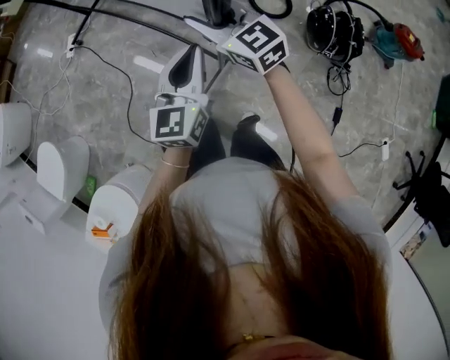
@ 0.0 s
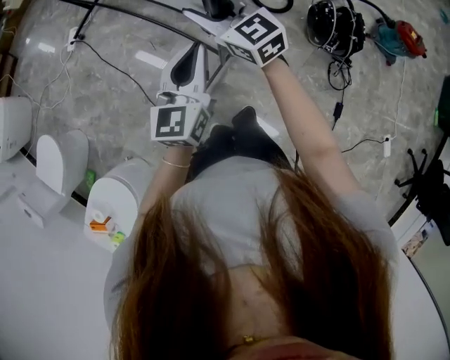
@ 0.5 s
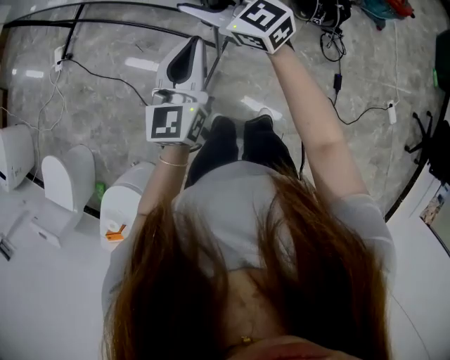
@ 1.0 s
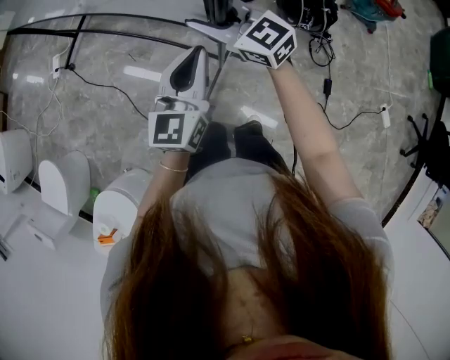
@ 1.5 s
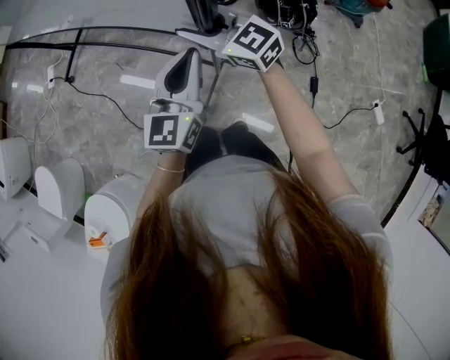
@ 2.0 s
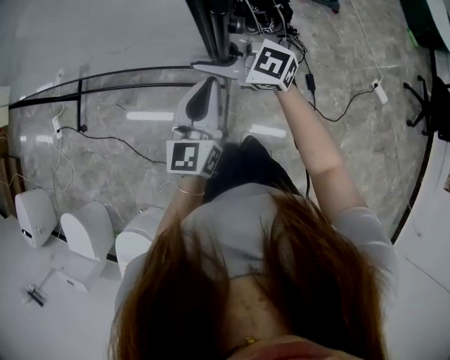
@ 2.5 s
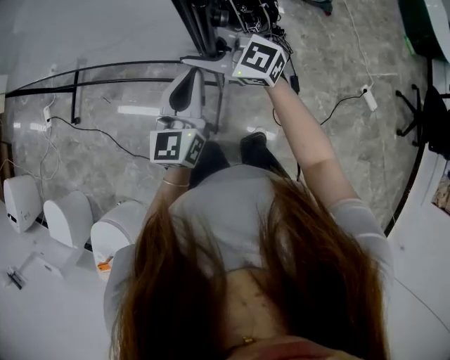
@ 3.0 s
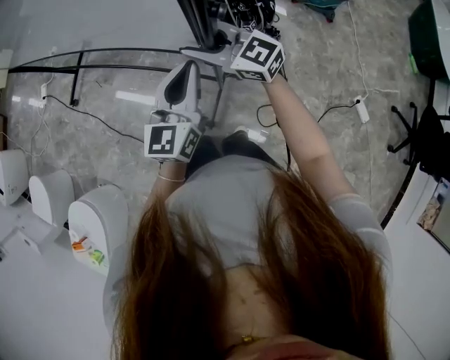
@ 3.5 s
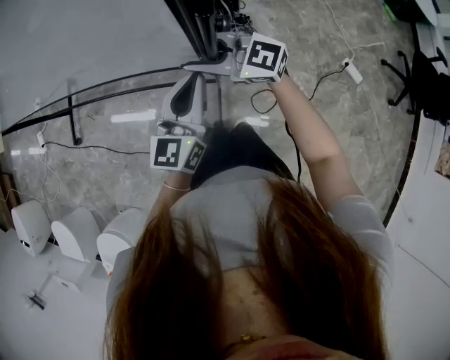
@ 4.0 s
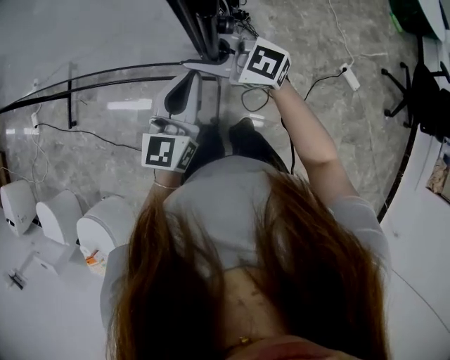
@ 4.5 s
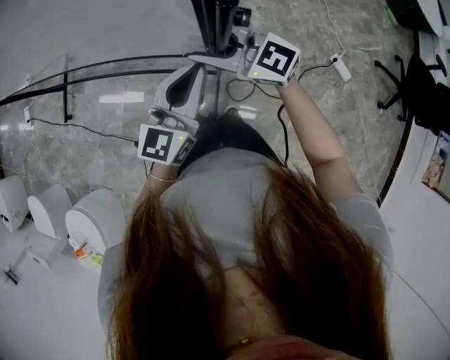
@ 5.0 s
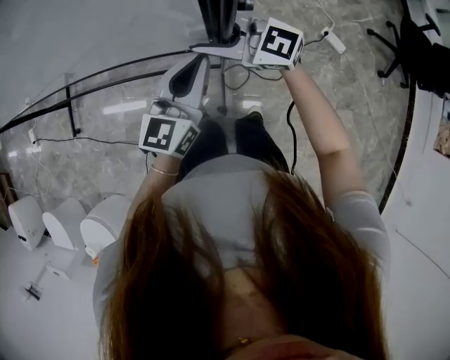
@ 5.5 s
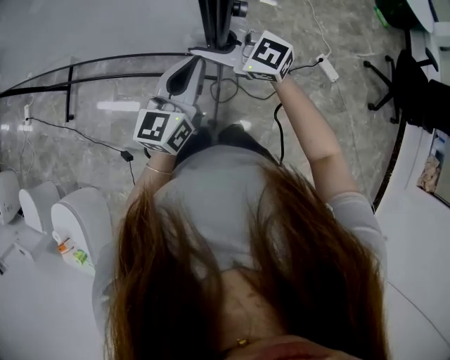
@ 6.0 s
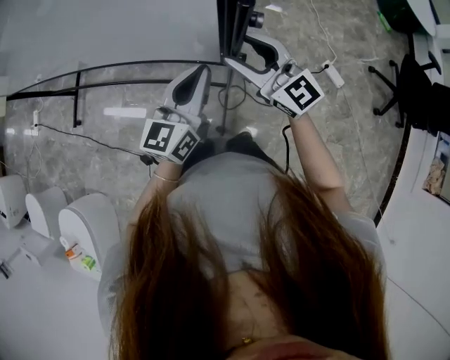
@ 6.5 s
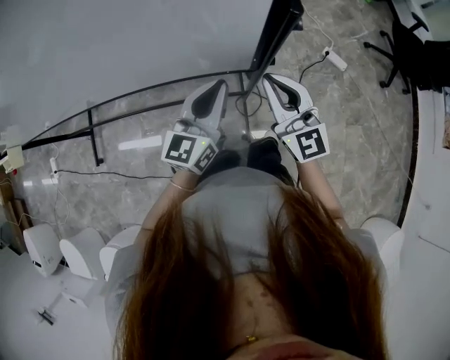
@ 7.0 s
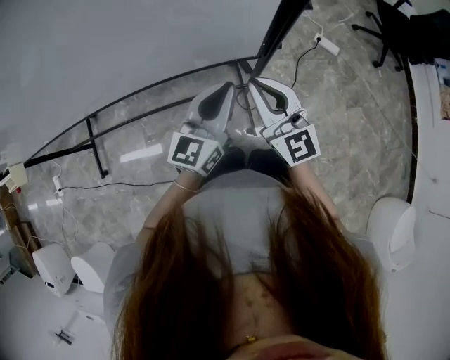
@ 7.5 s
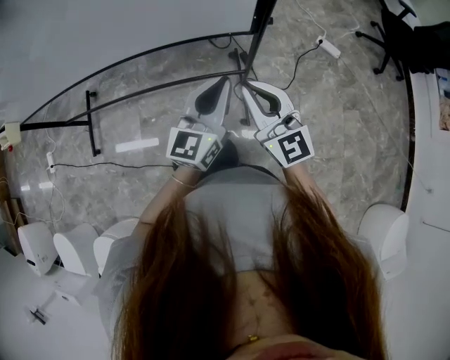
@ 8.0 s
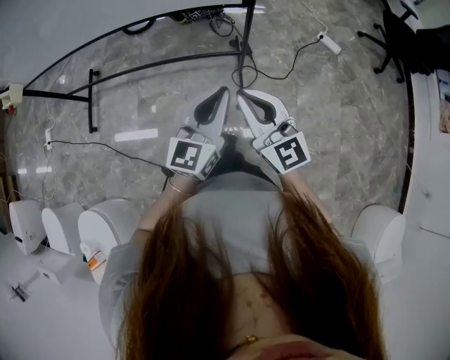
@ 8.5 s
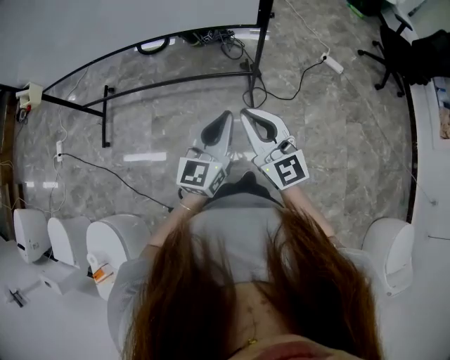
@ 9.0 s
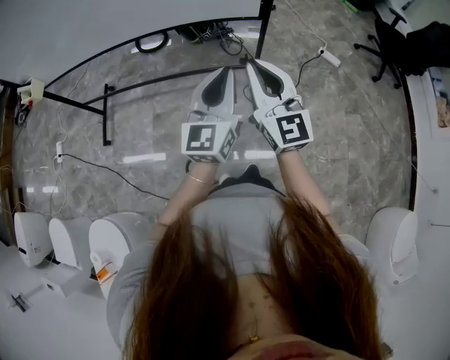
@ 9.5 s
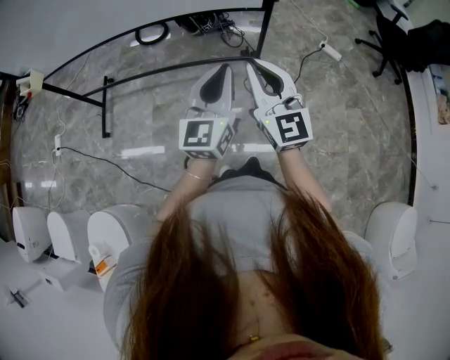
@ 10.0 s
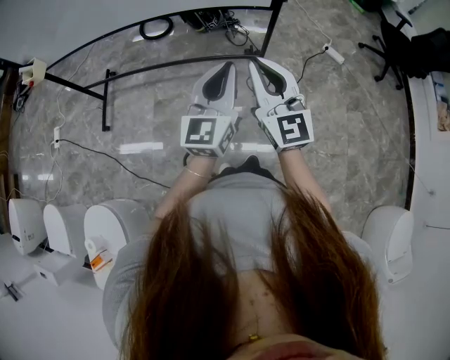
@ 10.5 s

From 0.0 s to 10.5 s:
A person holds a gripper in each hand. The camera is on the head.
From 0.0 s to 2.0 s: The right gripper moves backward and to the right, about 20 cm. Meanwhile the left gripper moves to the right and backward, some 20 cm.
From 2.0 s to 4.0 s: Both grippers move to the right and backward, about 30 cm.
From 4.0 s to 6.5 s: The left gripper moves backward and to the right, approximately 25 cm, while the right gripper moves to the right and backward, approximately 30 cm, and turns by some 30 degrees.
From 6.5 s to 8.5 s: The left gripper moves about 25 cm, while the right gripper shifts by some 35 cm, rotates some 30 degrees, and closes its fingers.
From 8.5 s to 10.5 s: The left gripper moves to the left and upward, roughly 10 cm. The right gripper shifts roughly 10 cm upward and to the left.

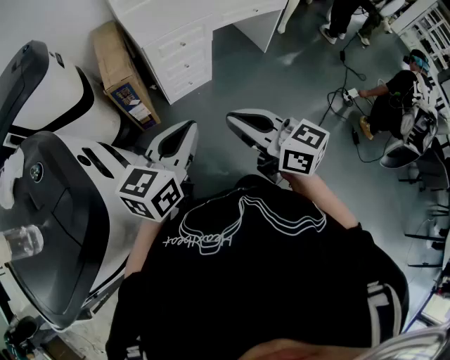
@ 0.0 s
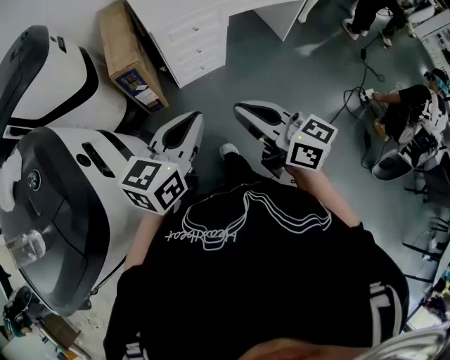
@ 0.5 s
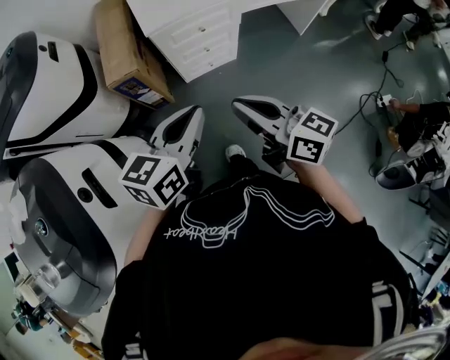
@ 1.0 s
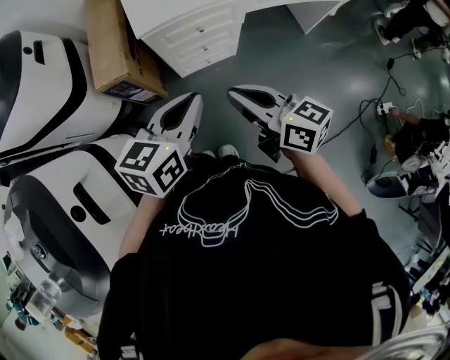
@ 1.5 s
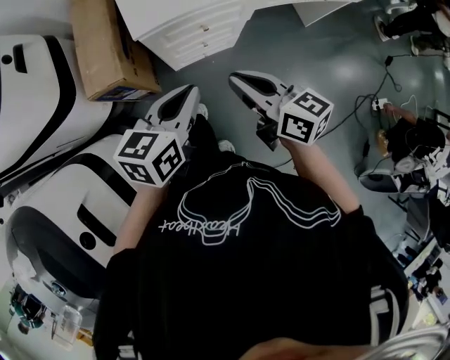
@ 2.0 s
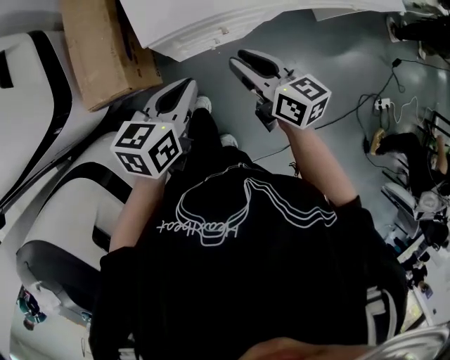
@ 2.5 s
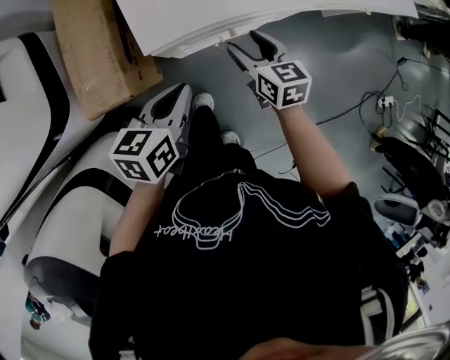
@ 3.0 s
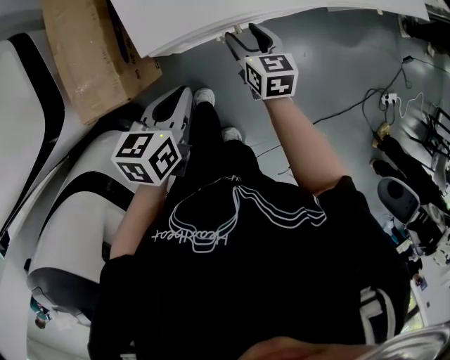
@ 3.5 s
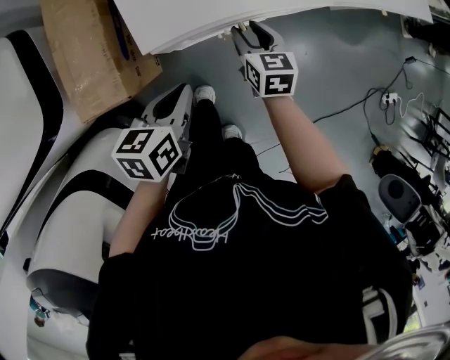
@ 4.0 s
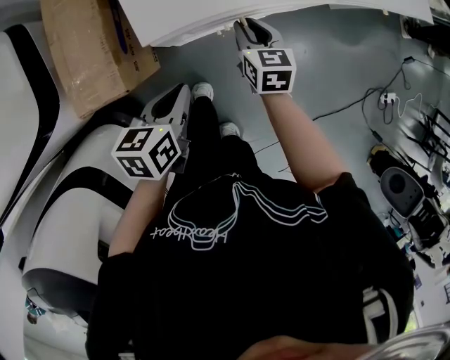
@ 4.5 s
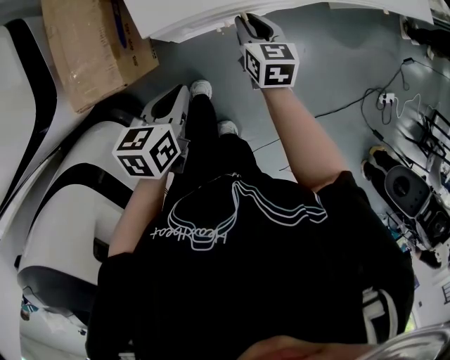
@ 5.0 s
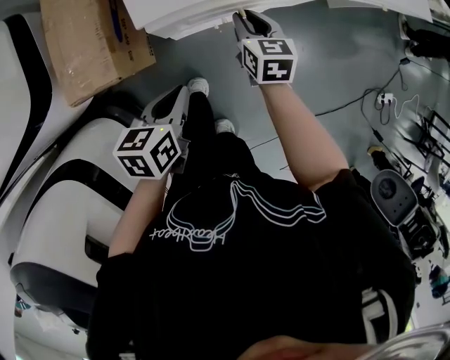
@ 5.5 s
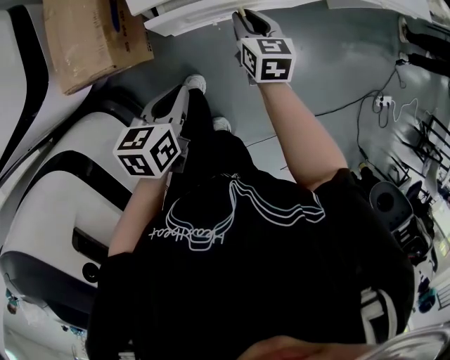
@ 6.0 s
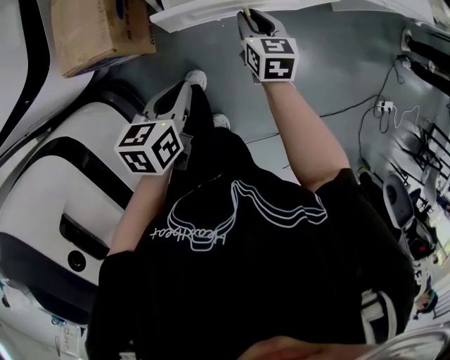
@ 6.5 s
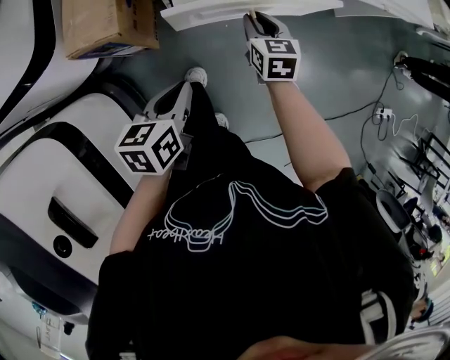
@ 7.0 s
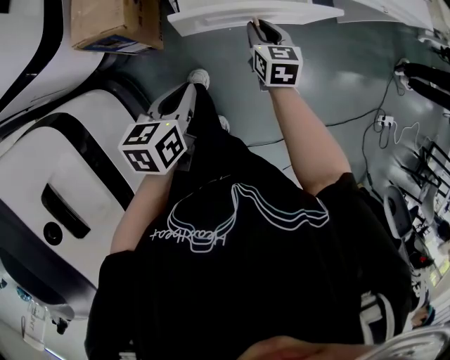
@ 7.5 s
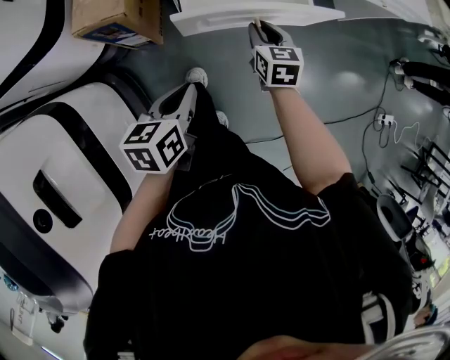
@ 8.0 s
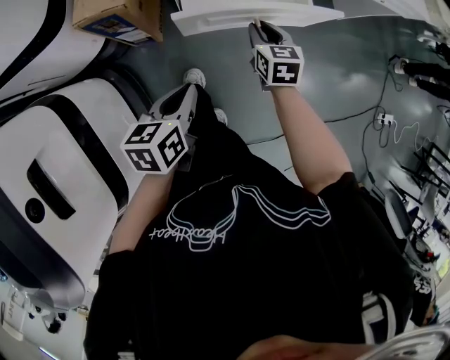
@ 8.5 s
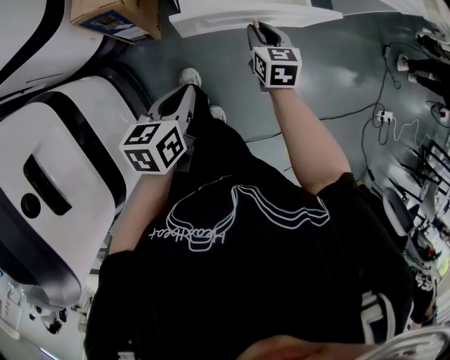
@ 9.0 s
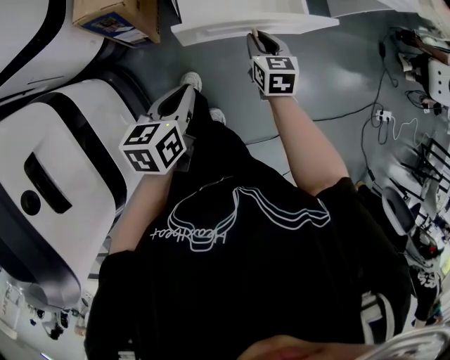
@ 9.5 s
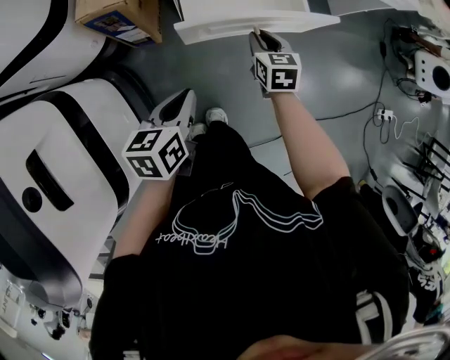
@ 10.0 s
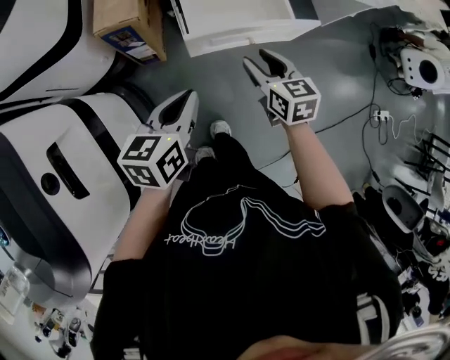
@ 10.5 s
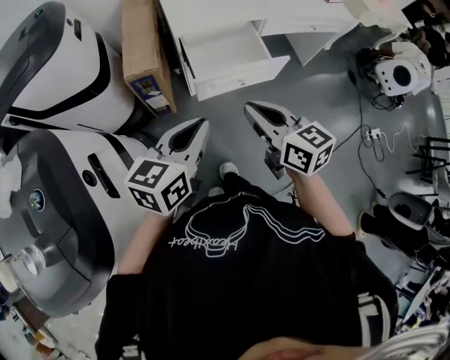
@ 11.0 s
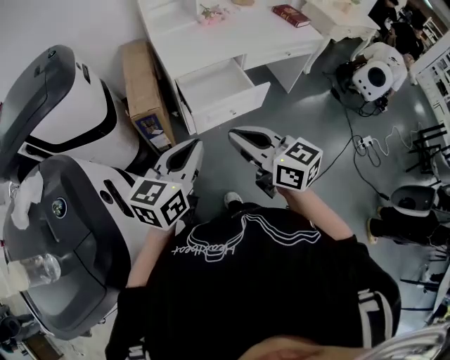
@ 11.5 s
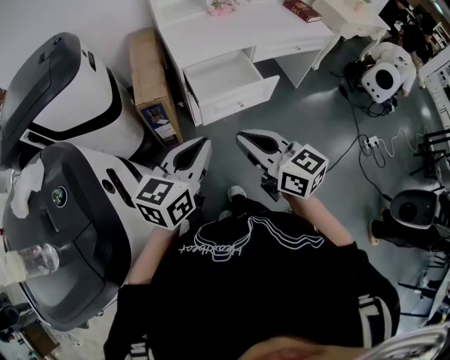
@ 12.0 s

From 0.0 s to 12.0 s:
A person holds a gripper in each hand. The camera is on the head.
From 0.0 s to 2.0 s: The right gripper shifts about 40 cm forward; the left gripper heads forward and downward, covering approximately 40 cm, and turns by about 20 degrees.
From 2.0 s to 4.0 s: The right gripper is displaced downward and forward by about 30 cm, swivels some 40 degrees, and opens, while the left gripper travels downward, to the left and forward by approximately 20 cm.
From 4.0 s to 6.0 s: The left gripper is displaced backward by approximately 5 cm.
From 6.0 s to 8.0 s: The two grippers go about 10 cm backward.
From 8.0 s to 10.0 s: Both grippers move backward, approximately 5 cm.
From 10.0 s to 12.0 s: The left gripper travels upward by some 35 cm, and turns by approximately 40 degrees. Meanwhile the right gripper goes about 50 cm upward and backward, angles its fingers upward, by about 30 degrees, and opens, then closes once more.

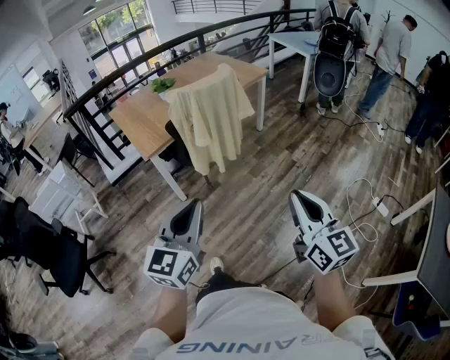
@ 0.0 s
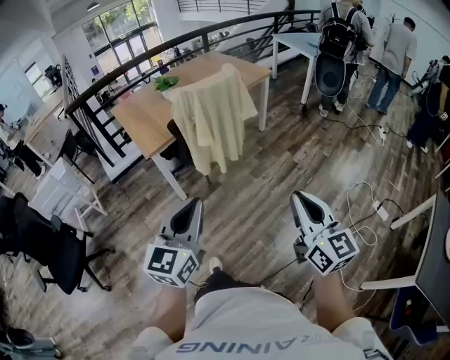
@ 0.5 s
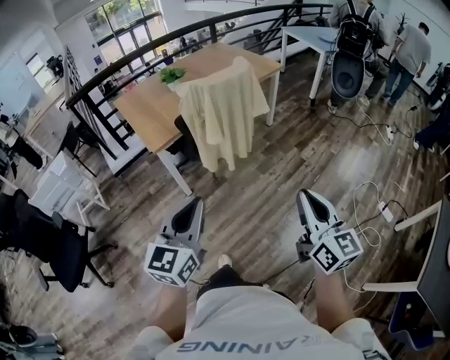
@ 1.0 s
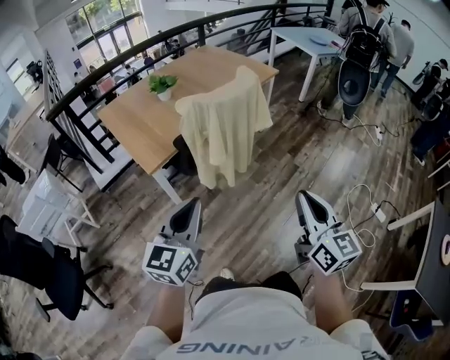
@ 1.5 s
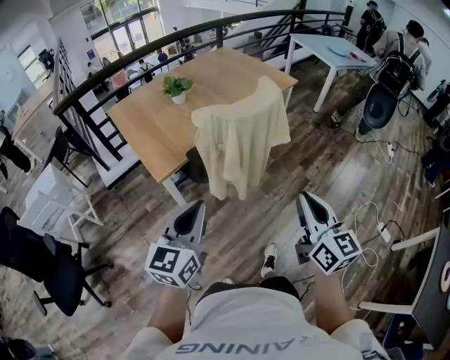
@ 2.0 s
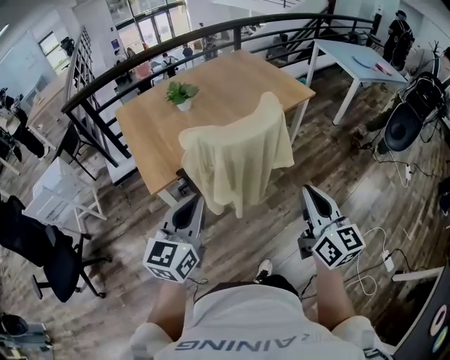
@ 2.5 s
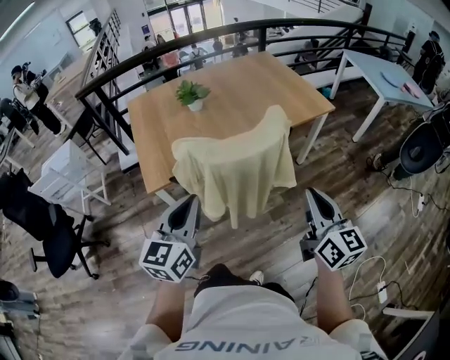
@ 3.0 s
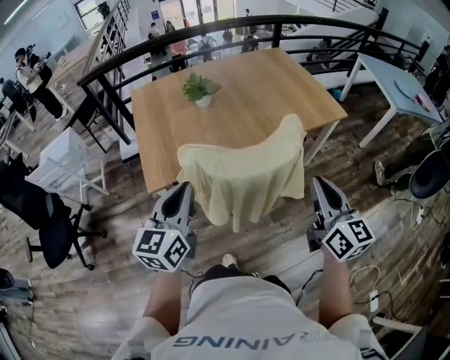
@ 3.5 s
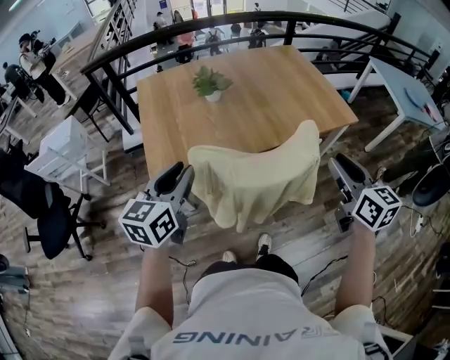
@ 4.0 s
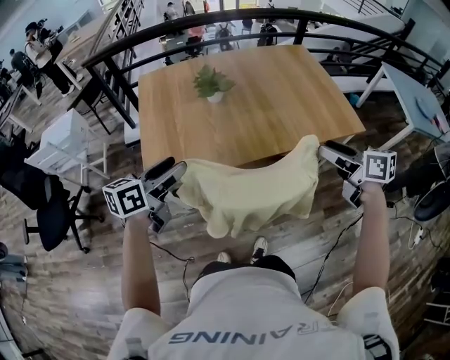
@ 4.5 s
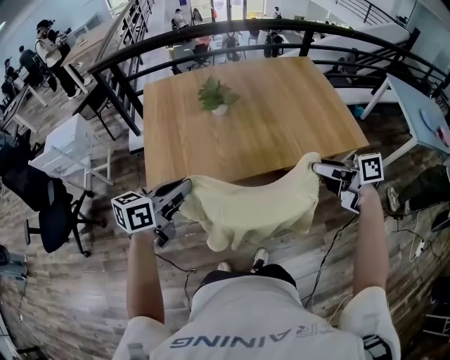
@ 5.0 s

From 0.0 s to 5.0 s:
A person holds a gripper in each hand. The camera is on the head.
From 0.0 s to 2.5 s: The pair of grippers is taken forward, roughly 40 cm.
From 2.5 s to 5.0 s: The left gripper shifts by some 25 cm, swivels about 30 degrees, and opens, then closes again; the right gripper shifts by about 40 cm, swivels roughly 70 degrees, and opens.
